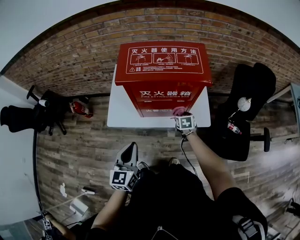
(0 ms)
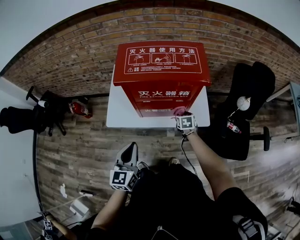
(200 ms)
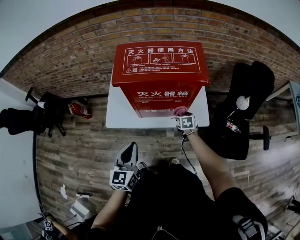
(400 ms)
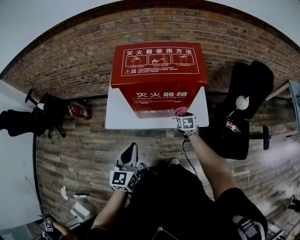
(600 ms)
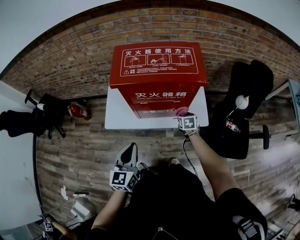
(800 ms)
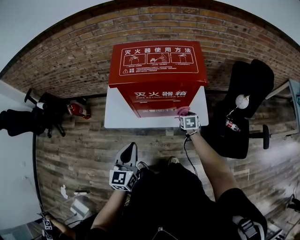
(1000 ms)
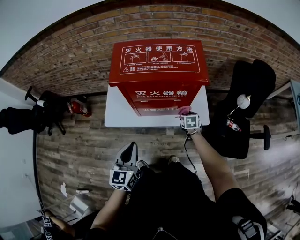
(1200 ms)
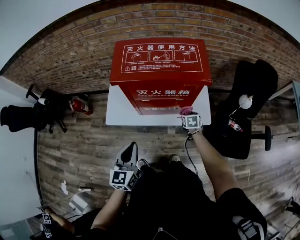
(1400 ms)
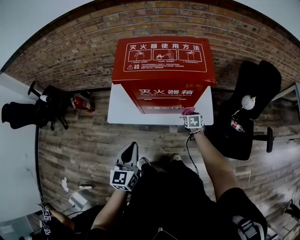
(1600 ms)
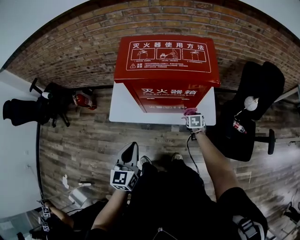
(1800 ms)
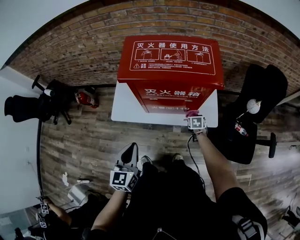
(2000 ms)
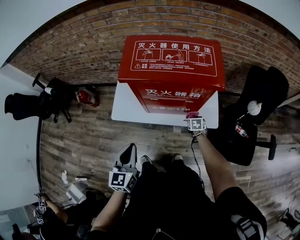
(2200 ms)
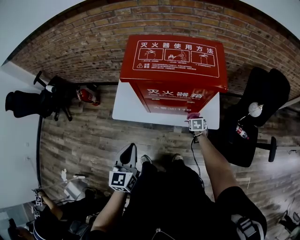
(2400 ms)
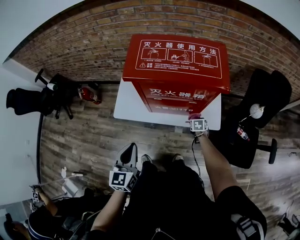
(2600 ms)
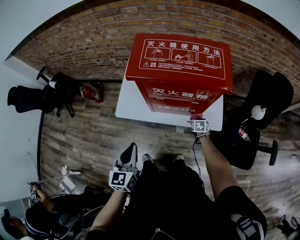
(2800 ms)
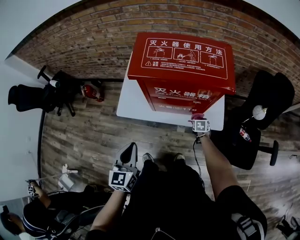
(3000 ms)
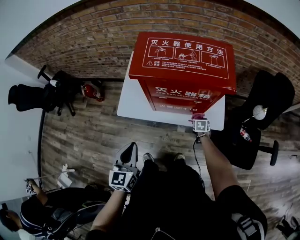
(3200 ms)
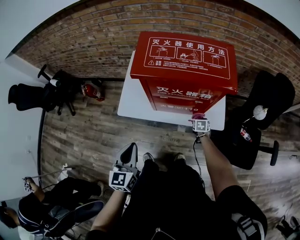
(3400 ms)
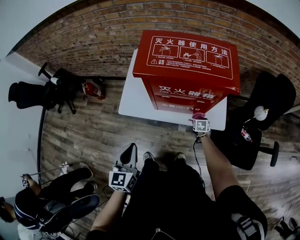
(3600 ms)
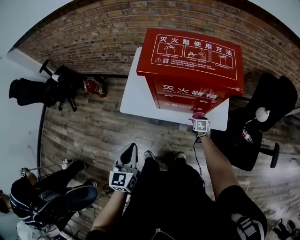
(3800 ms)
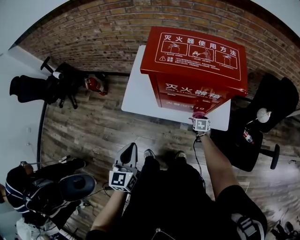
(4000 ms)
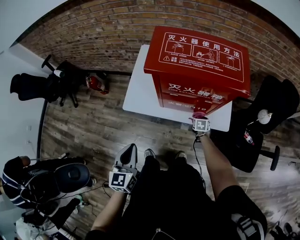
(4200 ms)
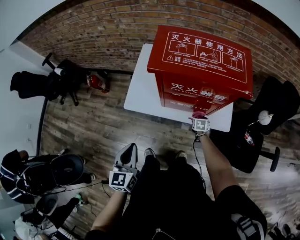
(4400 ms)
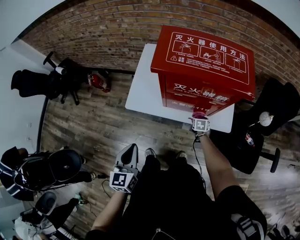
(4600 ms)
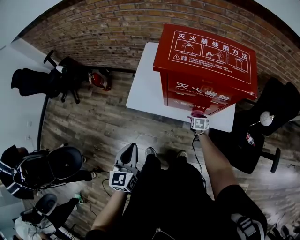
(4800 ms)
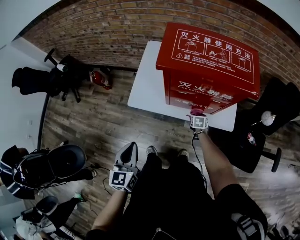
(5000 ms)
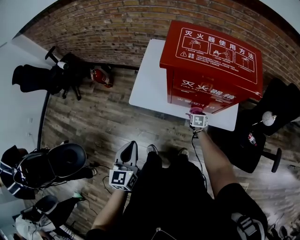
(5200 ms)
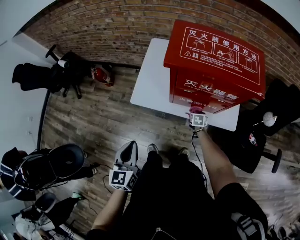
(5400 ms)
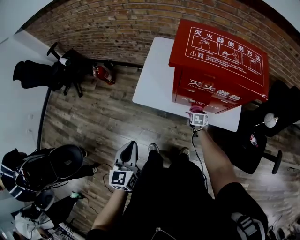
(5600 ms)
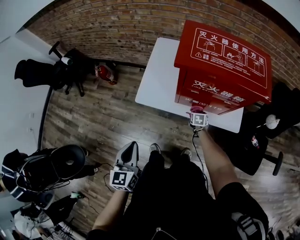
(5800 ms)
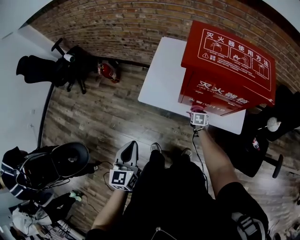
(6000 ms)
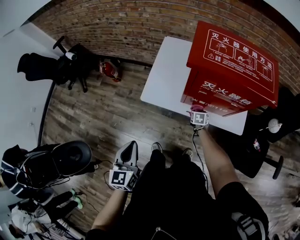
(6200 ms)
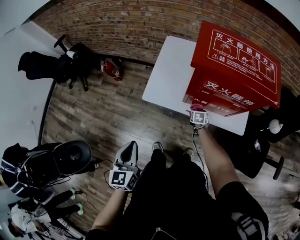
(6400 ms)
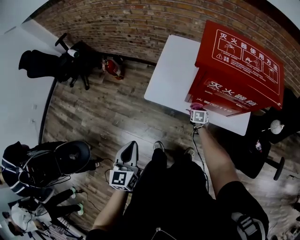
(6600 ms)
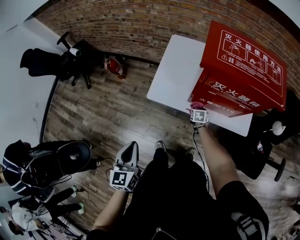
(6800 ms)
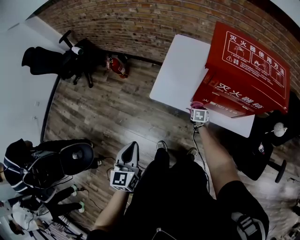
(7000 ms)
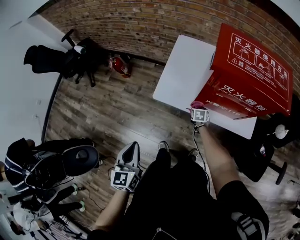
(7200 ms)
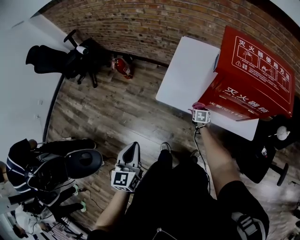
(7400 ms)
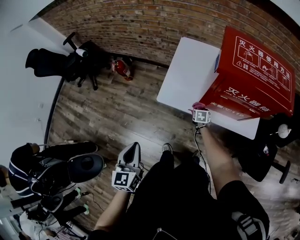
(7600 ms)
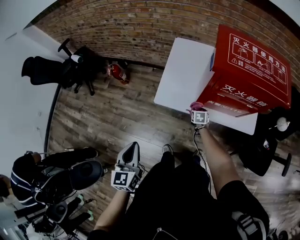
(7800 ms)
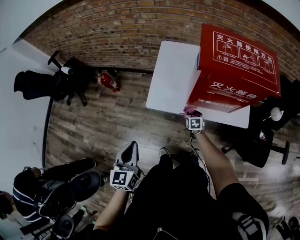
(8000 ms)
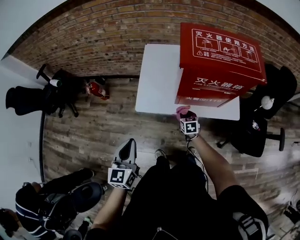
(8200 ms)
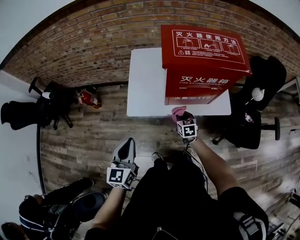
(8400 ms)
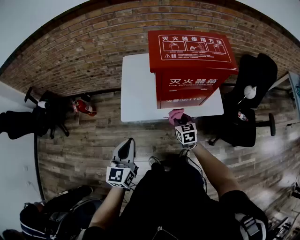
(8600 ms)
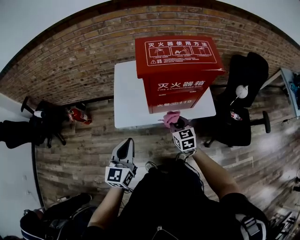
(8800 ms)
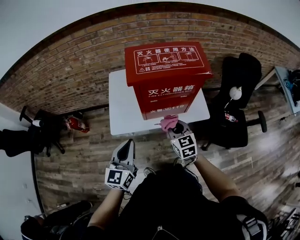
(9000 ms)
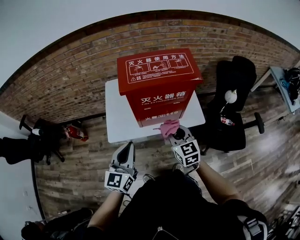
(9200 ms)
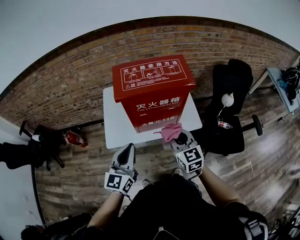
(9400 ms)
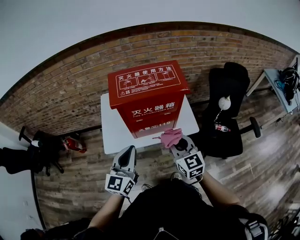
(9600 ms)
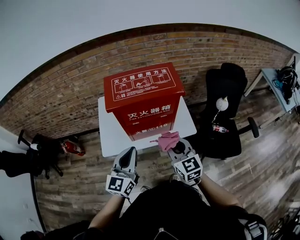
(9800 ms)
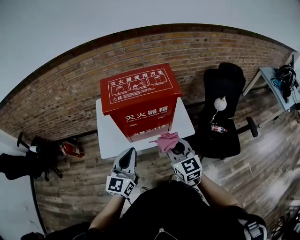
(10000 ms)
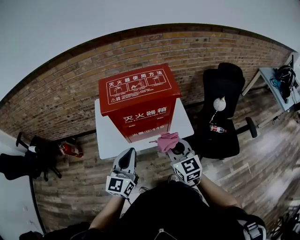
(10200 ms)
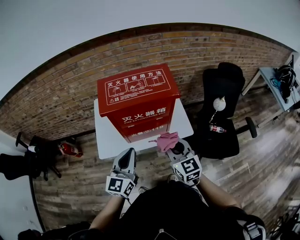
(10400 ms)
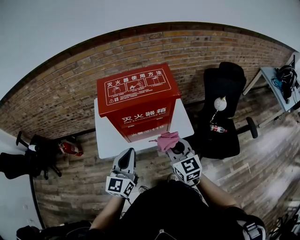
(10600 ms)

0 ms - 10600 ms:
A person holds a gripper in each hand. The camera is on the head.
0 ms - 1600 ms: The right gripper is displaced to the right by approximately 5 cm.
1600 ms - 3000 ms: The right gripper is displaced downward by approximately 10 cm.
3000 ms - 4600 ms: The two grippers go about 5 cm to the left.
4600 ms - 6000 ms: Both grippers travel together to the left, approximately 10 cm.
6000 ms - 7600 ms: The grippers both shift to the left by roughly 10 cm.
7600 ms - 9000 ms: The left gripper goes roughly 20 cm to the right, forward and upward, and swivels about 40 degrees. The right gripper travels upward by roughly 30 cm, and points its fingers roughly 30 degrees further upward.
9000 ms - 10600 ms: The right gripper shifts roughly 15 cm upward and to the right. The left gripper goes approximately 15 cm to the right and forward.

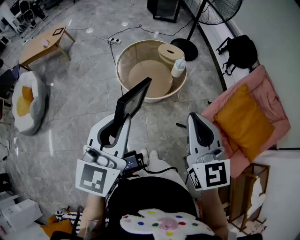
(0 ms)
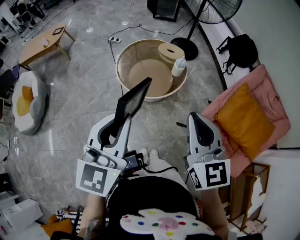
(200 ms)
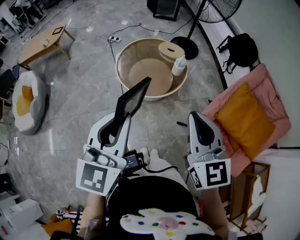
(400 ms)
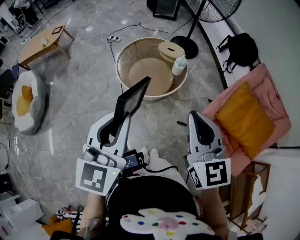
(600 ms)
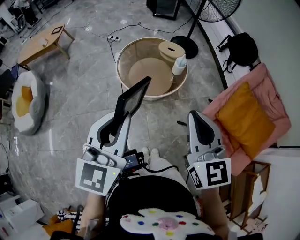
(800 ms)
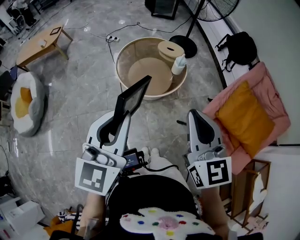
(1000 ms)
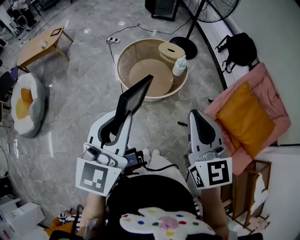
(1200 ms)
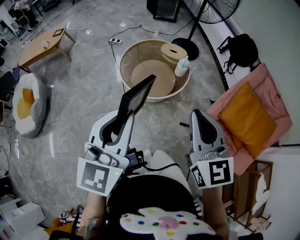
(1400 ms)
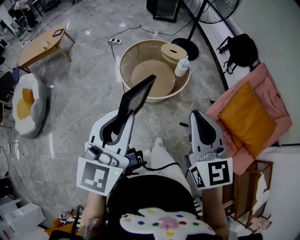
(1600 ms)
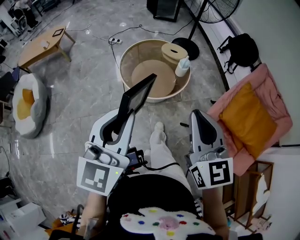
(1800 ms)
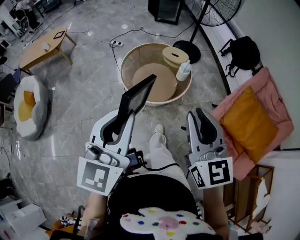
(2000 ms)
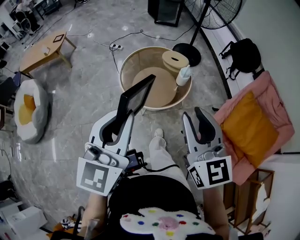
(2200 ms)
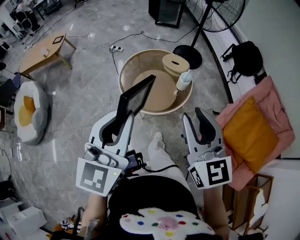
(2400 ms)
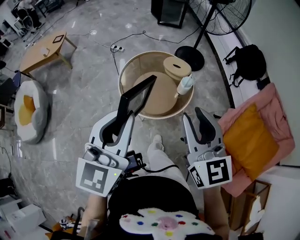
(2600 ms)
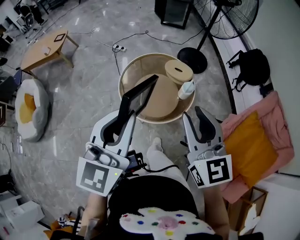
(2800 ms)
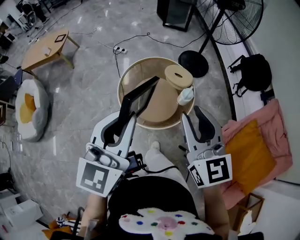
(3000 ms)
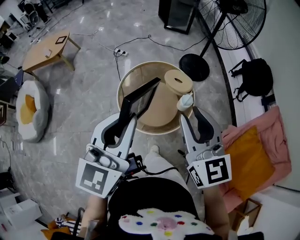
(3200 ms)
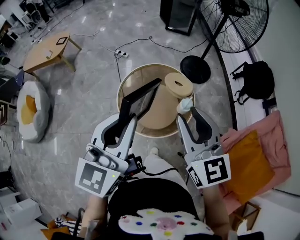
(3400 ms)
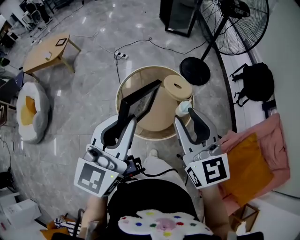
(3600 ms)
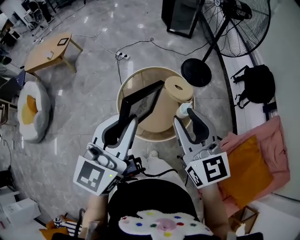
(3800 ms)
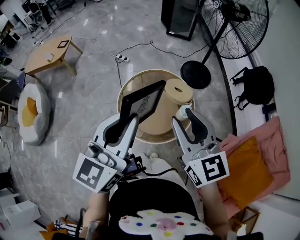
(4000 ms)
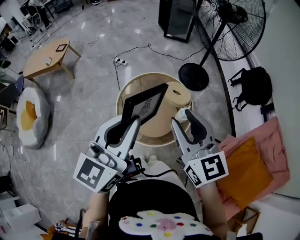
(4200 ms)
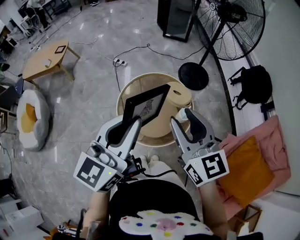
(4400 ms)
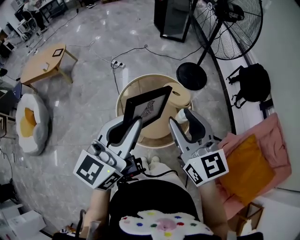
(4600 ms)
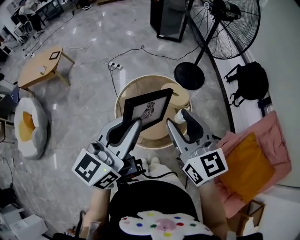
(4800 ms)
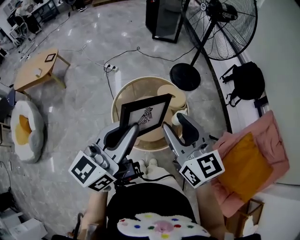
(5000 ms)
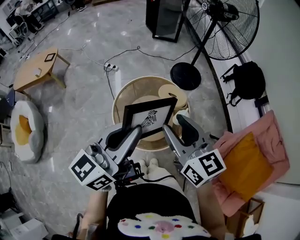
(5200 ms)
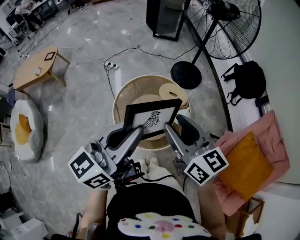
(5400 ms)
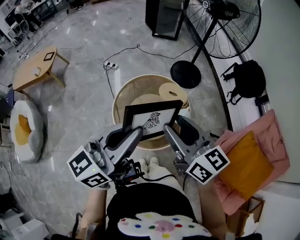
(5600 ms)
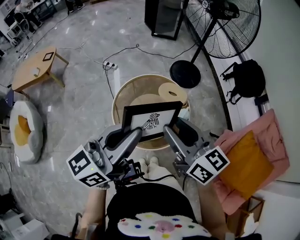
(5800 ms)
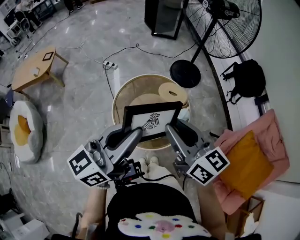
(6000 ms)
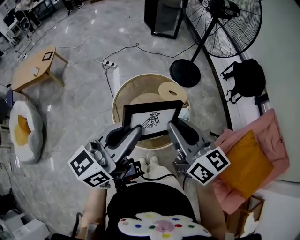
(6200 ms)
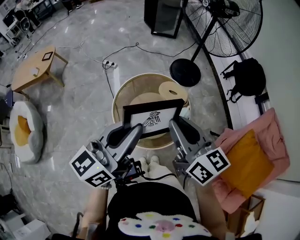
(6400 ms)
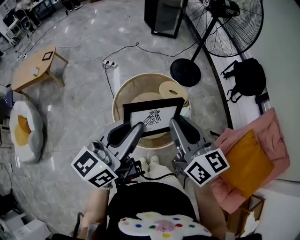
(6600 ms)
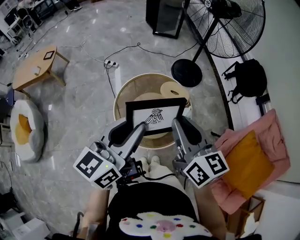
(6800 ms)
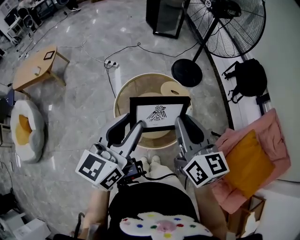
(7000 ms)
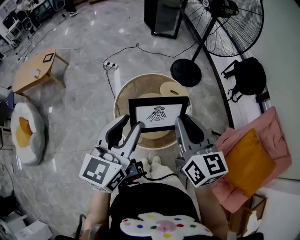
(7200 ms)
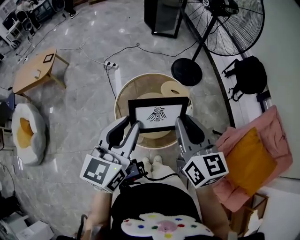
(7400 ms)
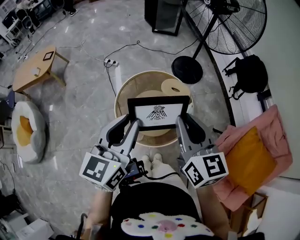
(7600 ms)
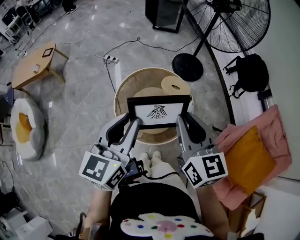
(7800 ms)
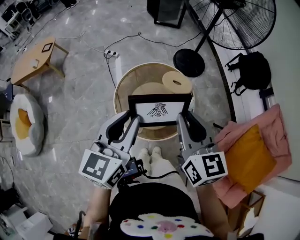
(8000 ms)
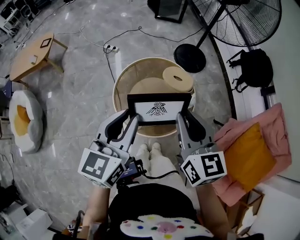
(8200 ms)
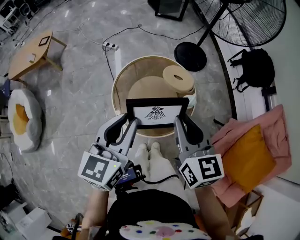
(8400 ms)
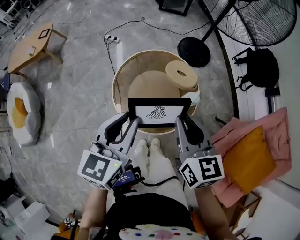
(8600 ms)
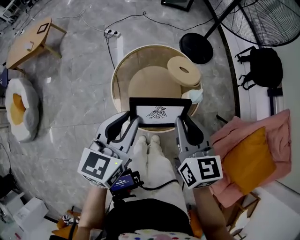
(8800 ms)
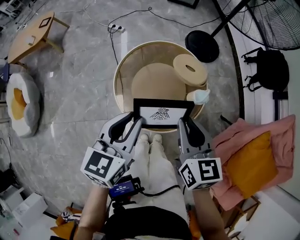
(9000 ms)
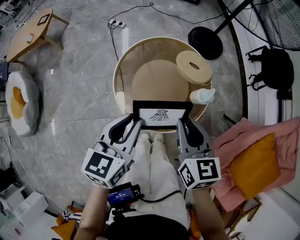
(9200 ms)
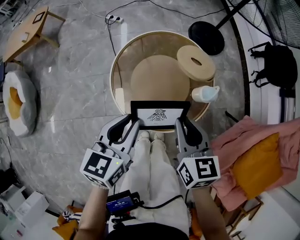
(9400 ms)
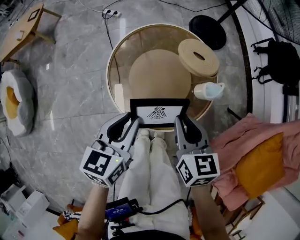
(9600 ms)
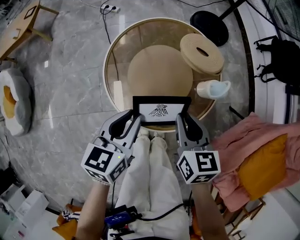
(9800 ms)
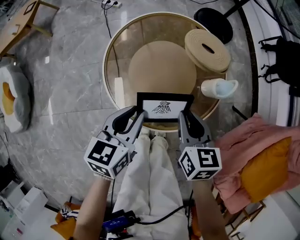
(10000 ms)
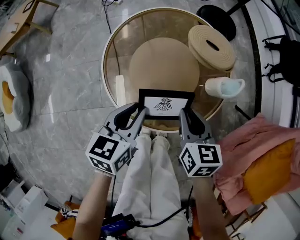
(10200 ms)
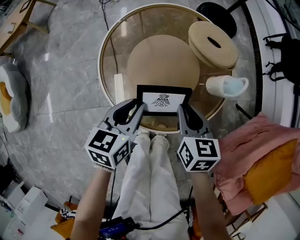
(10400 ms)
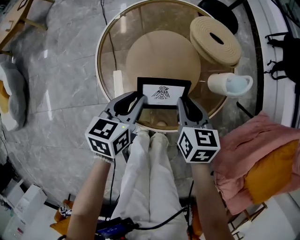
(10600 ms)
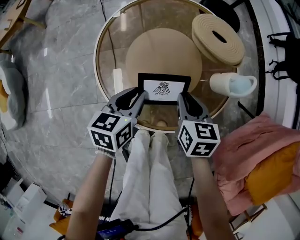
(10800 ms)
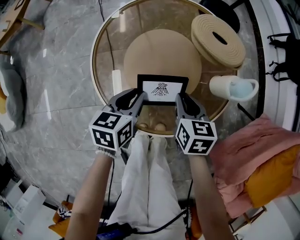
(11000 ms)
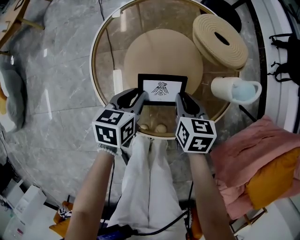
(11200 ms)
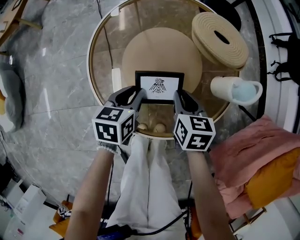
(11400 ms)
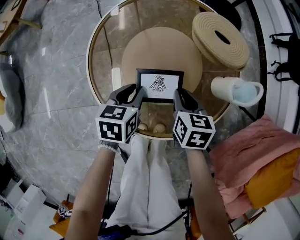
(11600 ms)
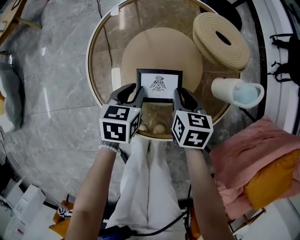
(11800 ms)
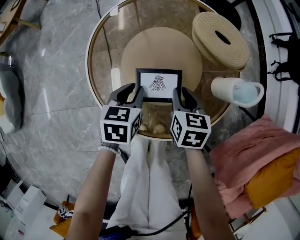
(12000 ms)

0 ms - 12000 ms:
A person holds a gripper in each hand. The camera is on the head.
0 ms - 1600 ms: There are only small adjustments of the grippers.
1600 ms - 3000 ms: Both grippers travel together forward, about 20 cm. The right gripper opens its fingers.
3000 ms - 4400 ms: The two grippers go approximately 10 cm forward.
4400 ms - 6000 ms: The left gripper rotates some 30 degrees. The right gripper rotates about 20 degrees.
6000 ms - 7600 ms: The left gripper moves about 5 cm, and turns by some 30 degrees. The right gripper changes its angle by roughly 20 degrees.
7600 ms - 9000 ms: The two grippers go some 15 cm downward.
9000 ms - 10400 ms: The grippers both shift downward by some 25 cm.
10400 ms - 12000 ms: The right gripper is displaced downward and forward by some 10 cm; the left gripper shifts approximately 10 cm downward.

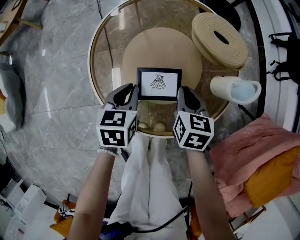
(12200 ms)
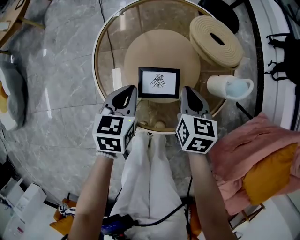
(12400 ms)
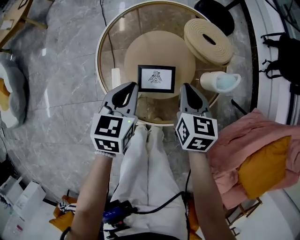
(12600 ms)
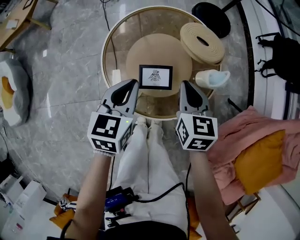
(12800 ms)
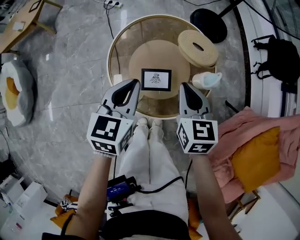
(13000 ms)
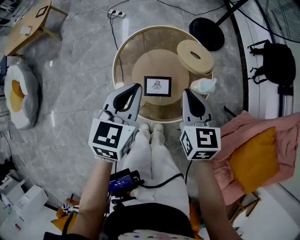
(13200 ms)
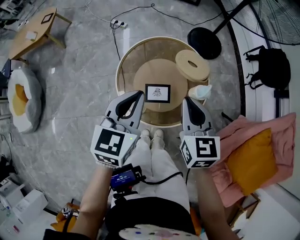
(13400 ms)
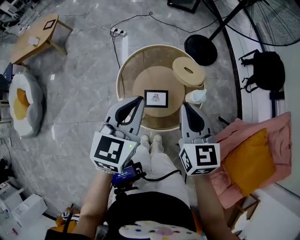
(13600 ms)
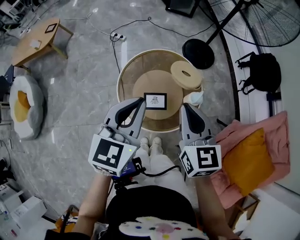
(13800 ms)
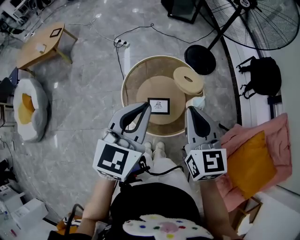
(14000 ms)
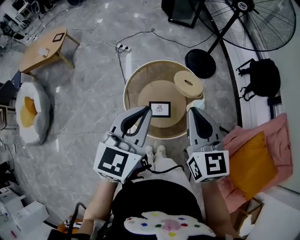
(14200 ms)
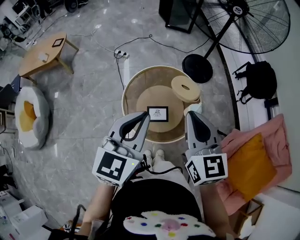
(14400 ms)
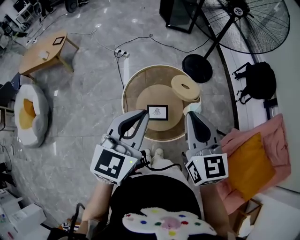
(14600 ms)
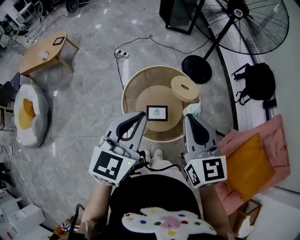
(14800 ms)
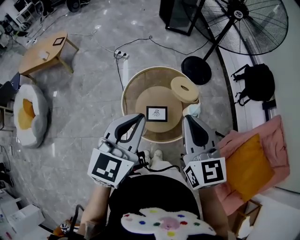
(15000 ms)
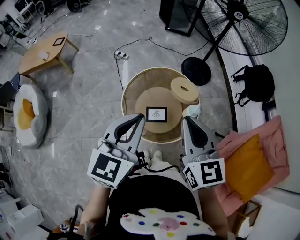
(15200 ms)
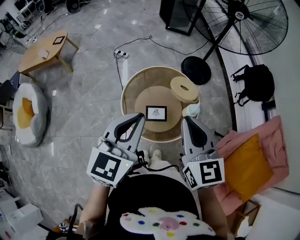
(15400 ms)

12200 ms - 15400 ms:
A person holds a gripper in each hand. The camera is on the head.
12200 ms - 13800 ms: The two grippers go approximately 40 cm upward. The left gripper swivels about 30 degrees; the right gripper changes its angle by roughly 30 degrees.
13800 ms - 15400 ms: The two grippers go roughly 5 cm upward.
